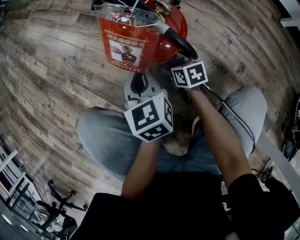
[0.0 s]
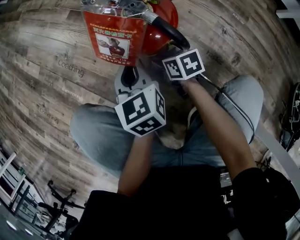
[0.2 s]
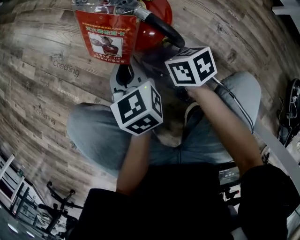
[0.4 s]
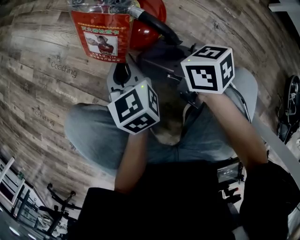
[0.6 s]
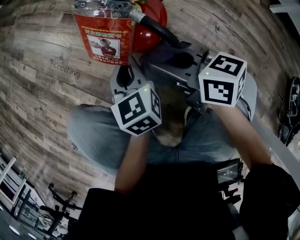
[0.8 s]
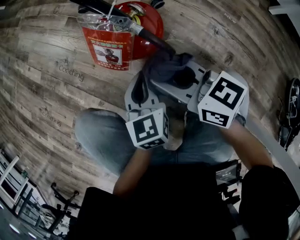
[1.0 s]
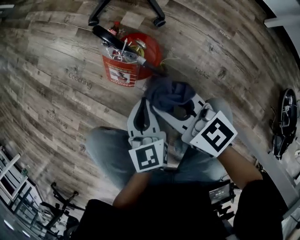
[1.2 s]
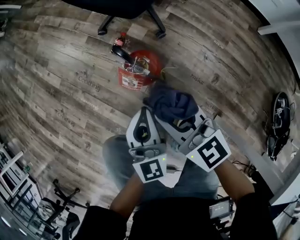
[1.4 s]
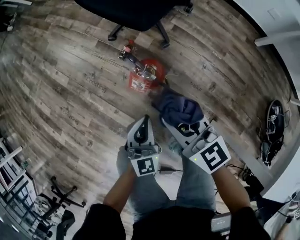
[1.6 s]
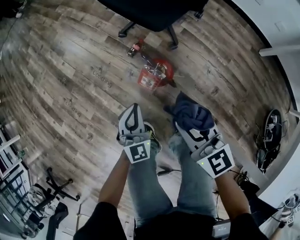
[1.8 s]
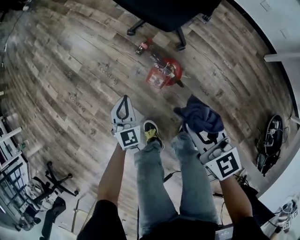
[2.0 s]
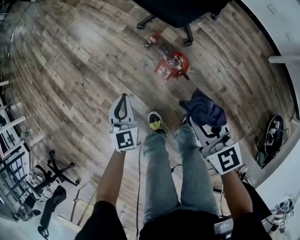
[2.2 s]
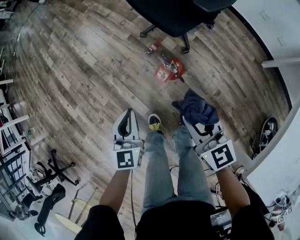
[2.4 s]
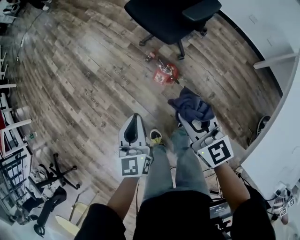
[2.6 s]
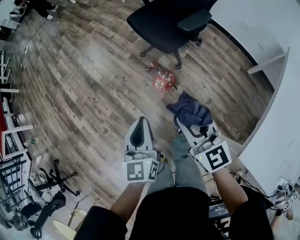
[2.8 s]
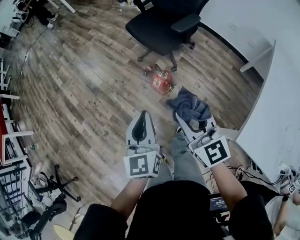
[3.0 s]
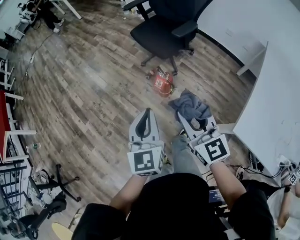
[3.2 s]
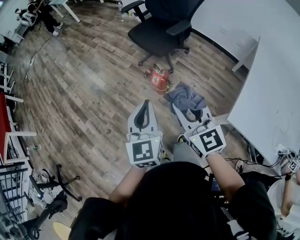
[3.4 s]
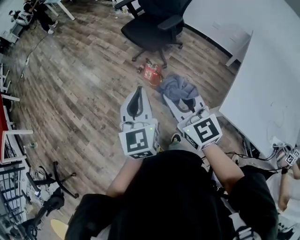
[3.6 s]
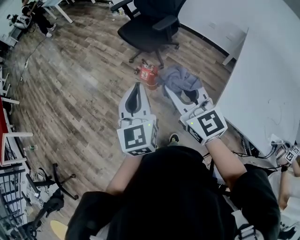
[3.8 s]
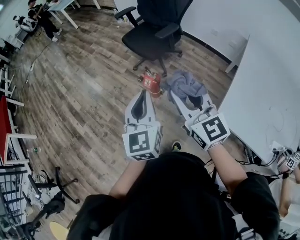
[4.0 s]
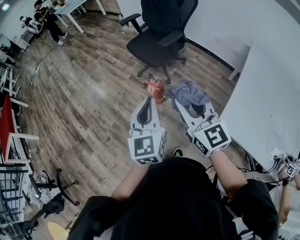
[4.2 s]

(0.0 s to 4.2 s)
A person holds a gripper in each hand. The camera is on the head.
0.0 s - 1.4 s: The left gripper goes some 25 cm upward, and swivels some 30 degrees. Meanwhile the right gripper shifts about 50 cm upward, and points its fingers roughly 40 degrees further upward.
1.4 s - 2.8 s: Both grippers travel together upward, about 40 cm.
2.8 s - 4.2 s: The two grippers go approximately 30 cm upward and backward.

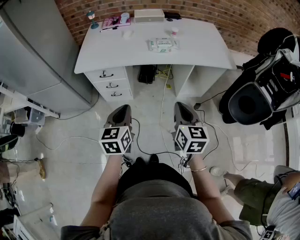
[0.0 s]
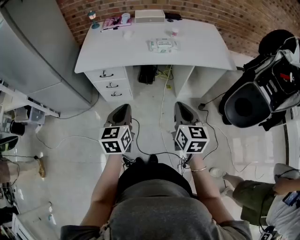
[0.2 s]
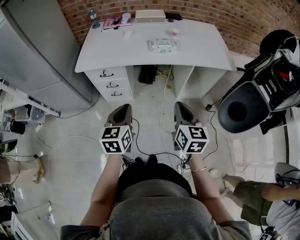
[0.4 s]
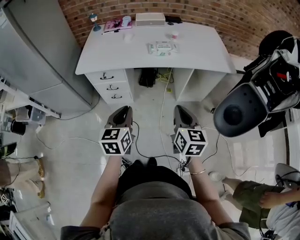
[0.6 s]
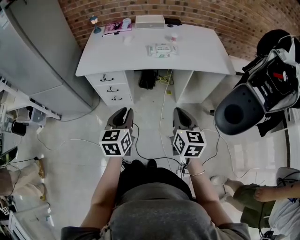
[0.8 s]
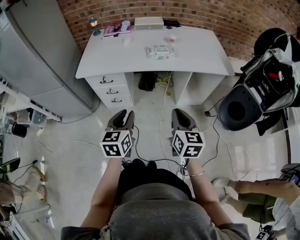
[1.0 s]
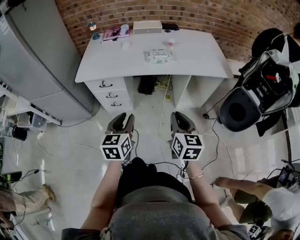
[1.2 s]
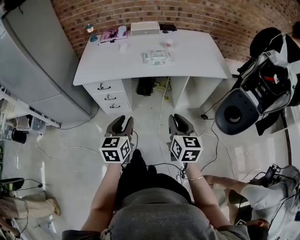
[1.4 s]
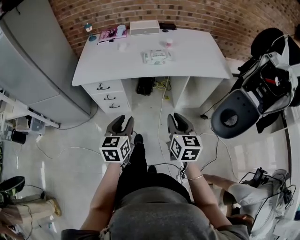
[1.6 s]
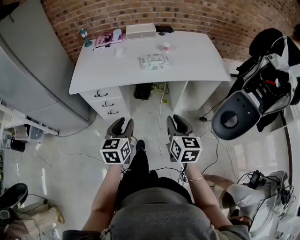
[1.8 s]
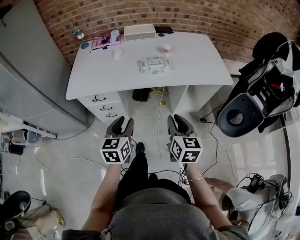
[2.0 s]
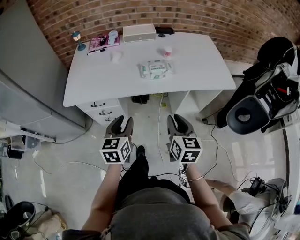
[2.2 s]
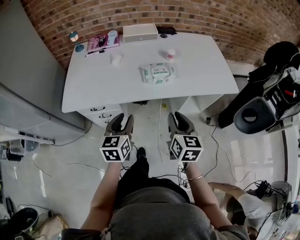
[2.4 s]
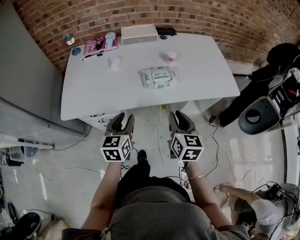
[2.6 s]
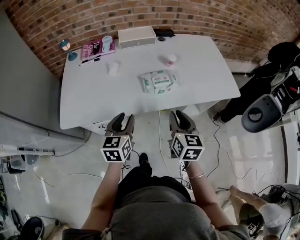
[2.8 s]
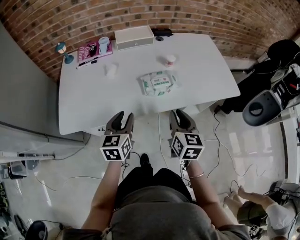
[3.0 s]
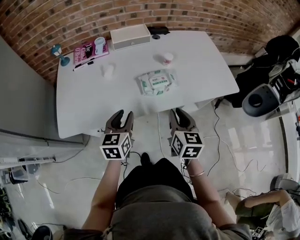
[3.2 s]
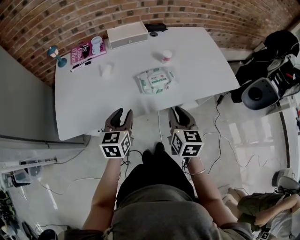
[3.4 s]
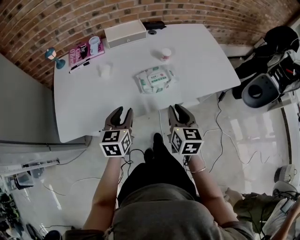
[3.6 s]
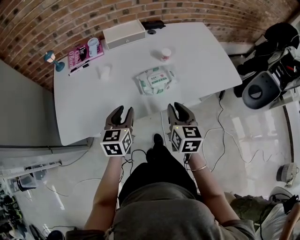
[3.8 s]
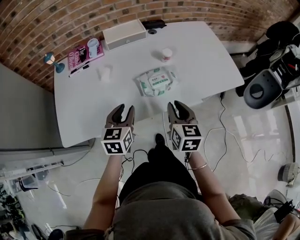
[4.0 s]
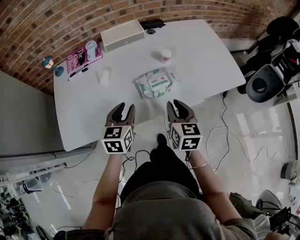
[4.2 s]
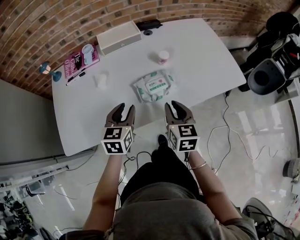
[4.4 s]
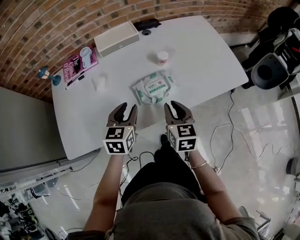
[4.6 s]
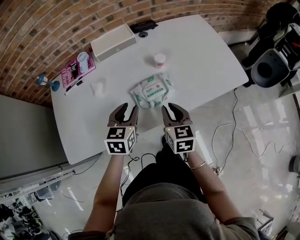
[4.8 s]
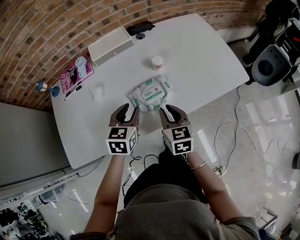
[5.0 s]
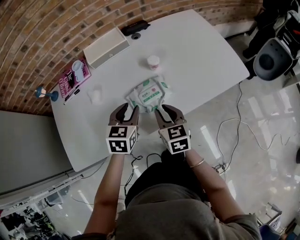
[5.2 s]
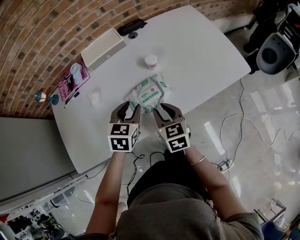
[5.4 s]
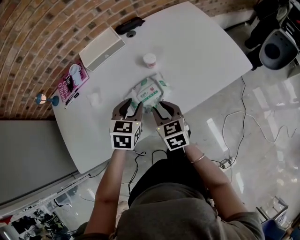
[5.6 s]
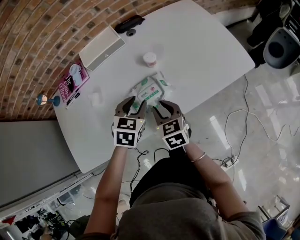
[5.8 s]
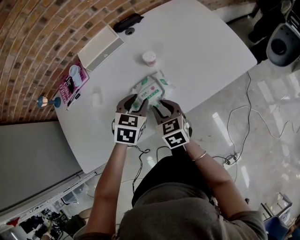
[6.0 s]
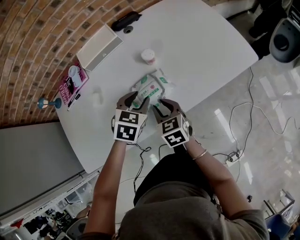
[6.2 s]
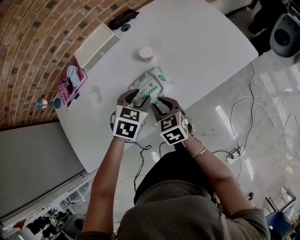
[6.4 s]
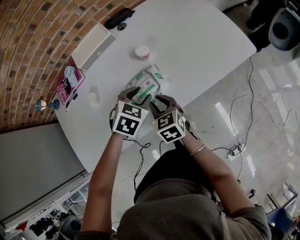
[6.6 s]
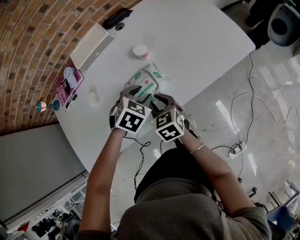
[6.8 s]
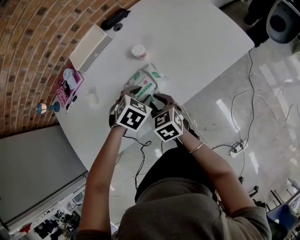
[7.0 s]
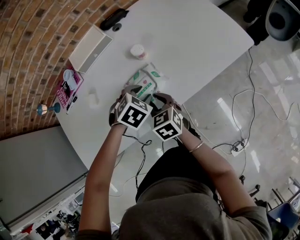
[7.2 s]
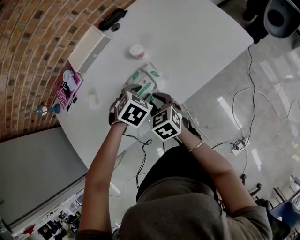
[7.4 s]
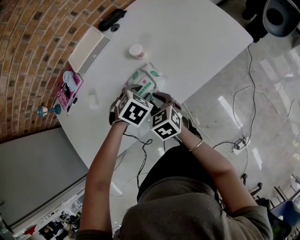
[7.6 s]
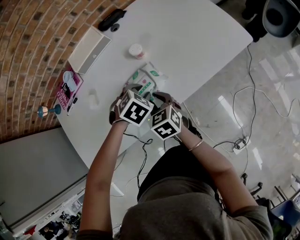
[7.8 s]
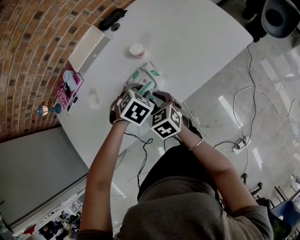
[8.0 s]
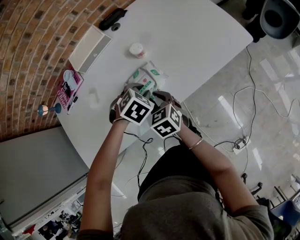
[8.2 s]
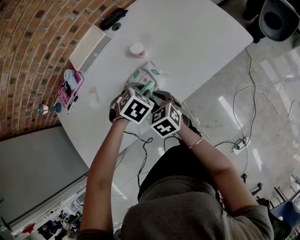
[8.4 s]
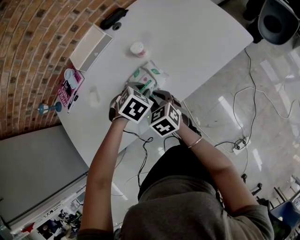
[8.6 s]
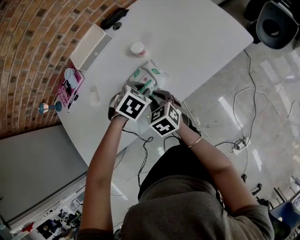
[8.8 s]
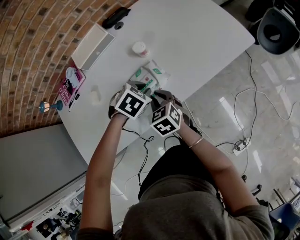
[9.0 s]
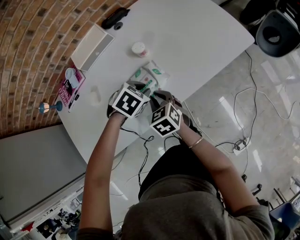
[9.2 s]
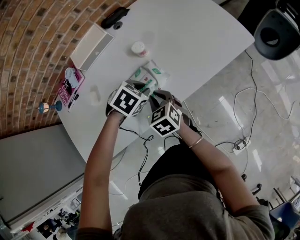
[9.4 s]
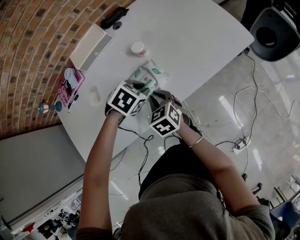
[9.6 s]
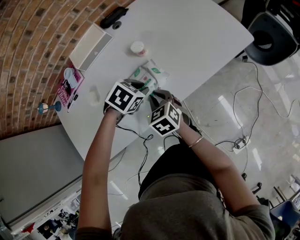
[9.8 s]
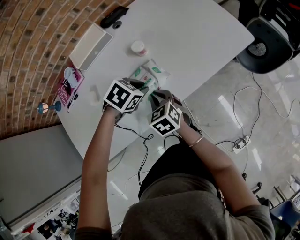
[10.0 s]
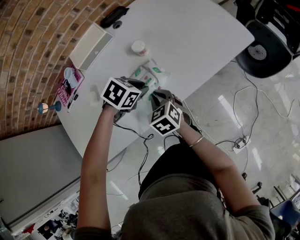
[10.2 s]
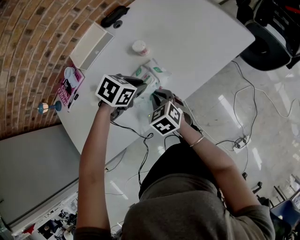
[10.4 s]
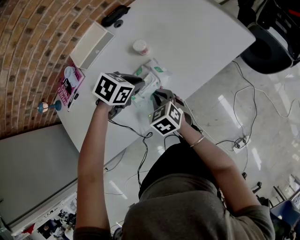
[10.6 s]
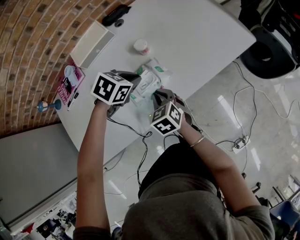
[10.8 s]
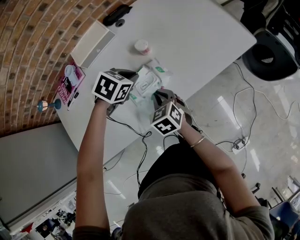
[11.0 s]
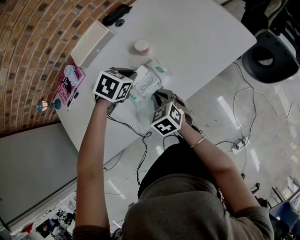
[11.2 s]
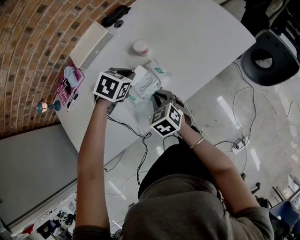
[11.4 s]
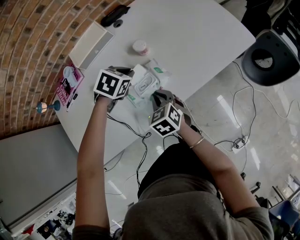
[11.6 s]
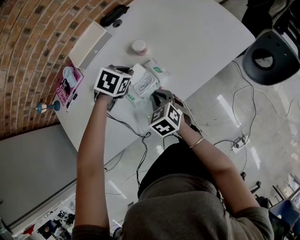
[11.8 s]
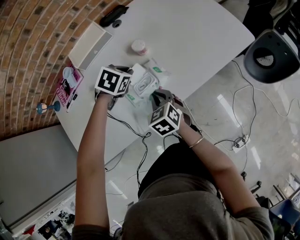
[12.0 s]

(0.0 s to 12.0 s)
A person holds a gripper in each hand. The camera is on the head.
0.0 s - 1.6 s: The left gripper opens.
1.6 s - 3.0 s: Both grippers travel together forward, about 30 cm.
3.0 s - 4.4 s: Both grippers travel together forward, roughly 10 cm.
4.4 s - 6.0 s: The left gripper travels to the right and forward by approximately 15 cm, and changes its angle by some 30 degrees. The right gripper moves downward and forward, about 10 cm.
6.0 s - 7.6 s: The left gripper shifts roughly 5 cm downward, and turns by about 30 degrees.
7.6 s - 9.0 s: Neither gripper changes place.
9.0 s - 10.4 s: The grippers stay close to where they were, moving slightly.
10.4 s - 12.0 s: The left gripper moves forward and to the left, roughly 10 cm.

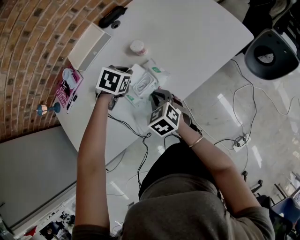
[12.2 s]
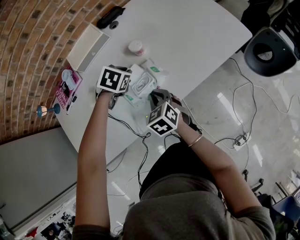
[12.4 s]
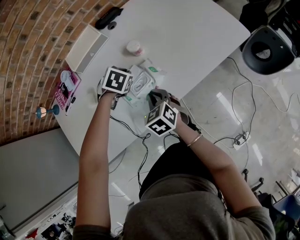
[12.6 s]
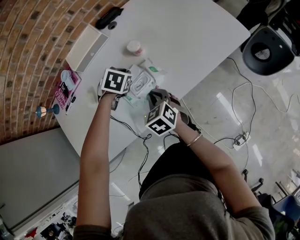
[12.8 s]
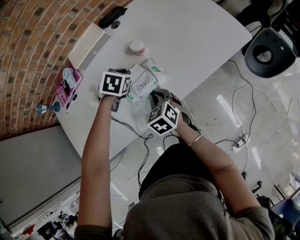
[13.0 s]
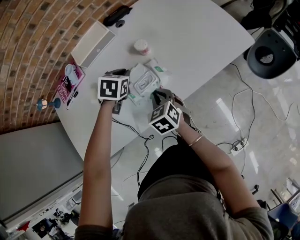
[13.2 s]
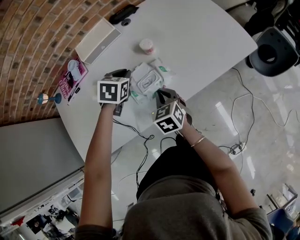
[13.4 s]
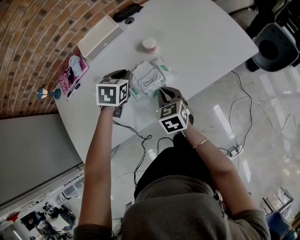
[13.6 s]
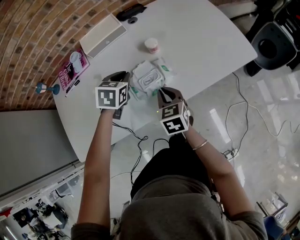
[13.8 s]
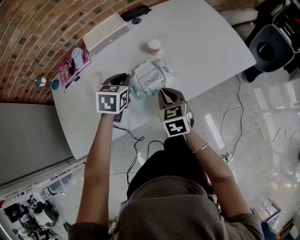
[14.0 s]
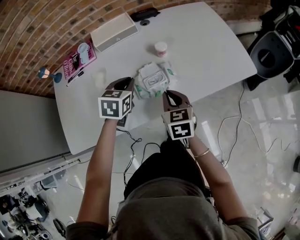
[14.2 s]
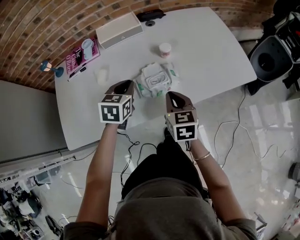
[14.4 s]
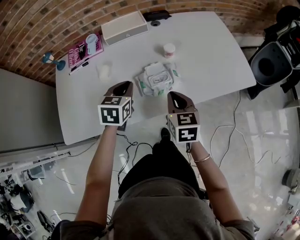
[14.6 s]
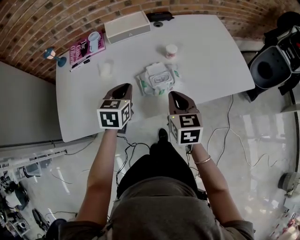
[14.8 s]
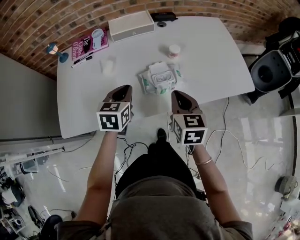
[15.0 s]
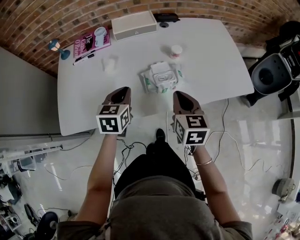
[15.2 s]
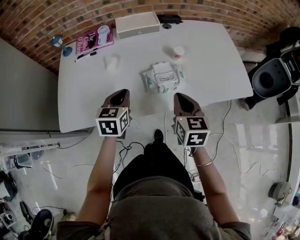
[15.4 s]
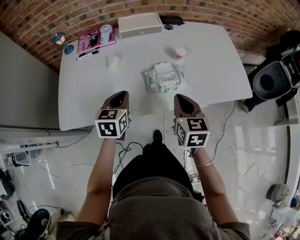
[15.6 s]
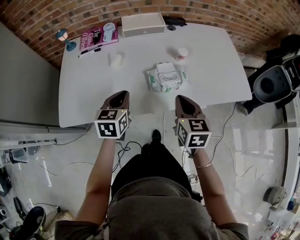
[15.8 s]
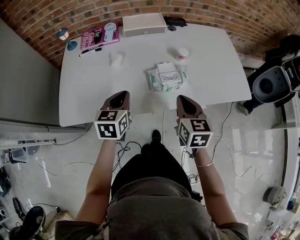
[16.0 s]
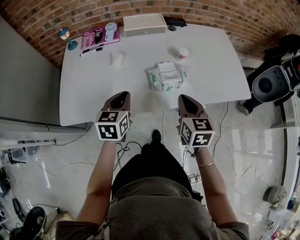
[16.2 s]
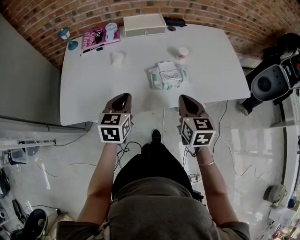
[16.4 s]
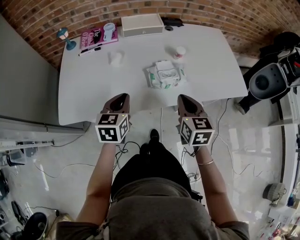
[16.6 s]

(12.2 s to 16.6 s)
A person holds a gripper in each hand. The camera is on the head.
12.2 s - 13.6 s: The left gripper ends up some 5 cm from where it was, and turns by approximately 30 degrees.
13.6 s - 15.2 s: The left gripper is displaced backward and to the left by approximately 15 cm, and swivels approximately 30 degrees. Meanwhile the right gripper is displaced upward by approximately 10 cm.
15.2 s - 16.6 s: The left gripper goes approximately 5 cm backward.

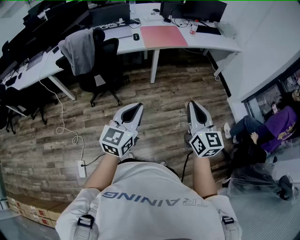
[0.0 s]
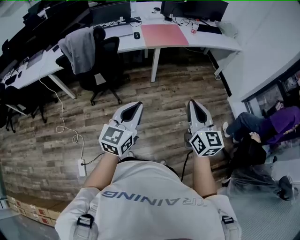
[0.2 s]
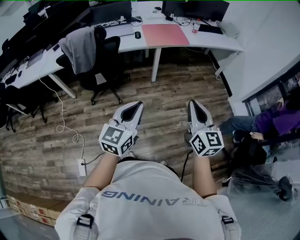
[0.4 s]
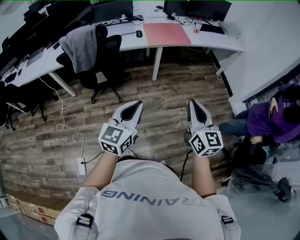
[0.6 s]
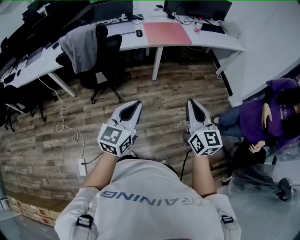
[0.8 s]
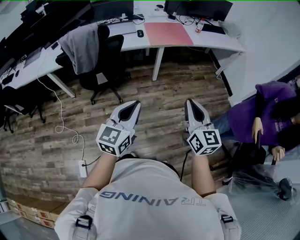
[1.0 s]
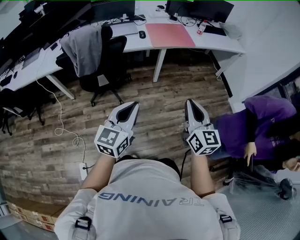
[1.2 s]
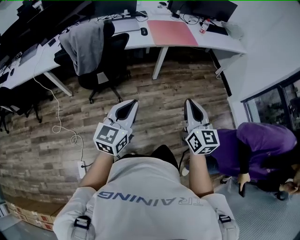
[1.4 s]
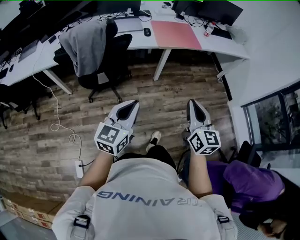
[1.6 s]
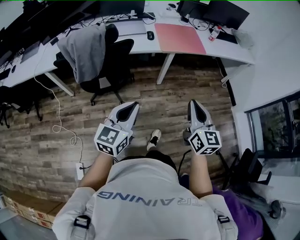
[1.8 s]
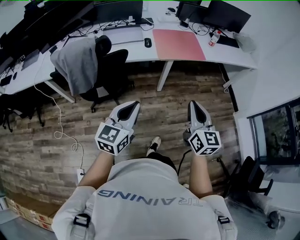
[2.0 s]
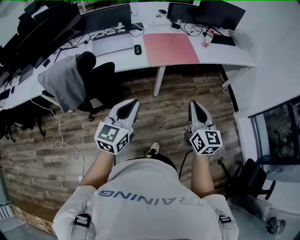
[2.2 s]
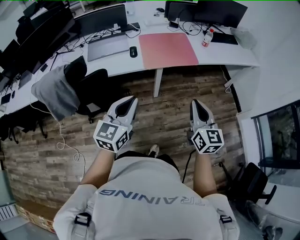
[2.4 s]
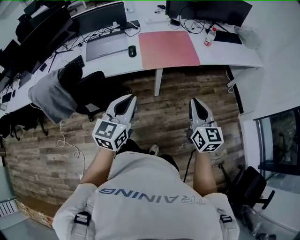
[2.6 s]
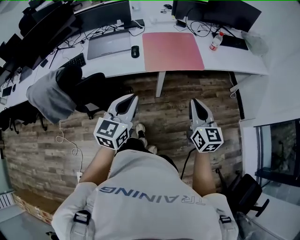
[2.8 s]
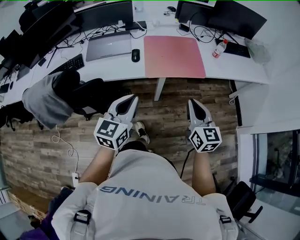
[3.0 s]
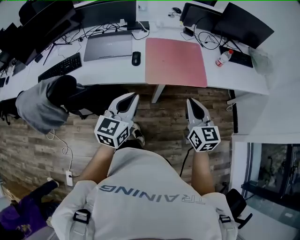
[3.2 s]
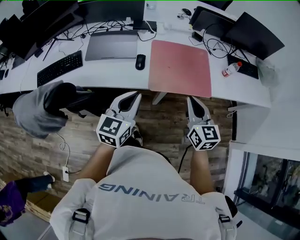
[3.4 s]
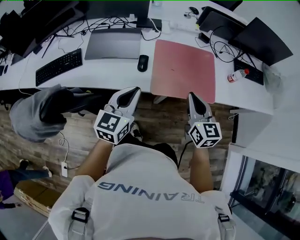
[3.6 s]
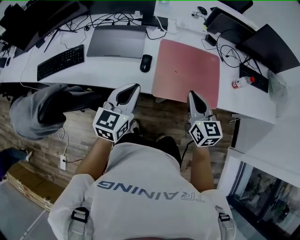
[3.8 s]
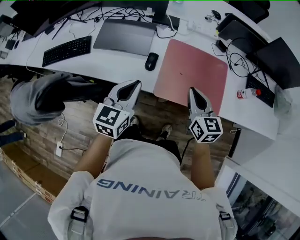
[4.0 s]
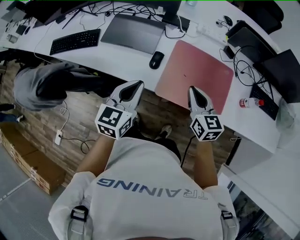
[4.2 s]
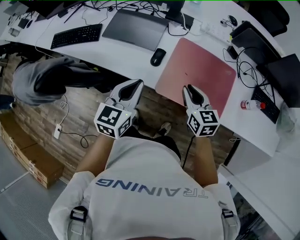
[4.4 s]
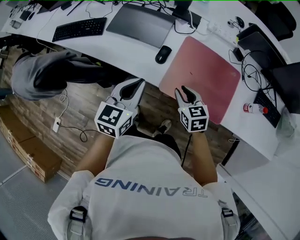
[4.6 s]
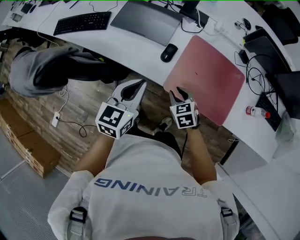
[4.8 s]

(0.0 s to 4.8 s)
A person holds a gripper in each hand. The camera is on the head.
0.0 s - 1.6 s: The two grippers go roughly 20 cm to the left and forward.
1.6 s - 3.2 s: Both grippers are carried forward, roughly 50 cm.
3.2 s - 4.8 s: The right gripper shifts by about 30 cm, tilts its fingers about 40 degrees downward, and opens its fingers. Meanwhile the left gripper ends up about 15 cm from where it was, and turns by about 30 degrees.
